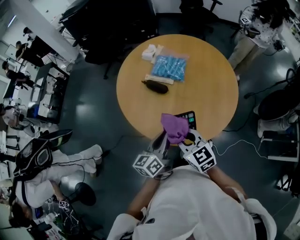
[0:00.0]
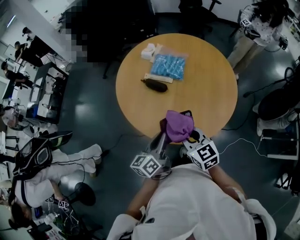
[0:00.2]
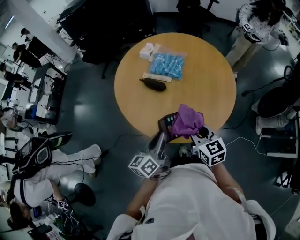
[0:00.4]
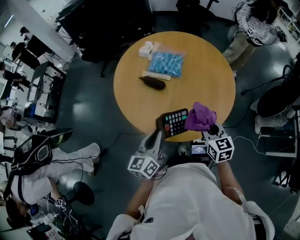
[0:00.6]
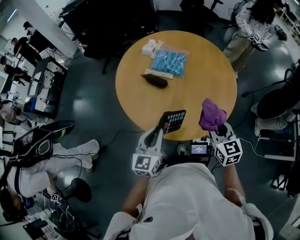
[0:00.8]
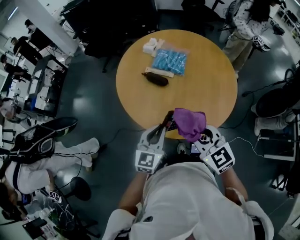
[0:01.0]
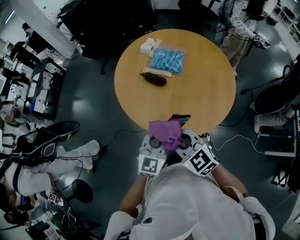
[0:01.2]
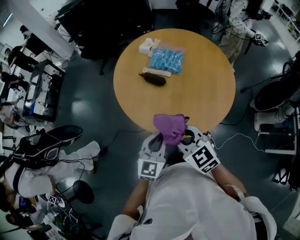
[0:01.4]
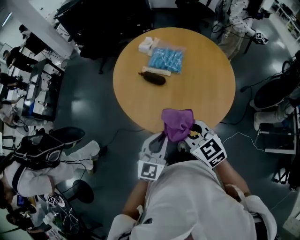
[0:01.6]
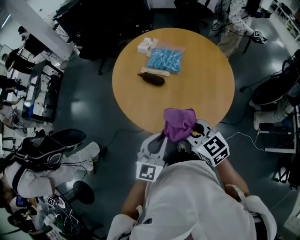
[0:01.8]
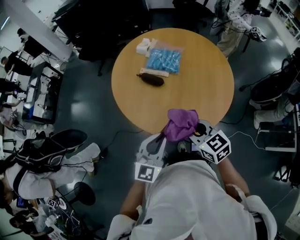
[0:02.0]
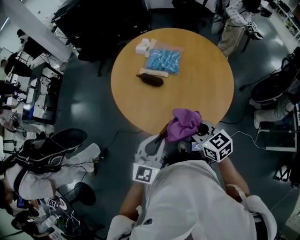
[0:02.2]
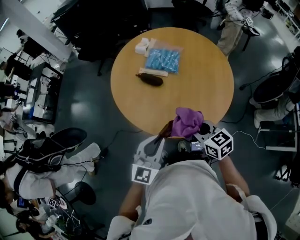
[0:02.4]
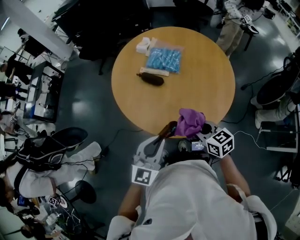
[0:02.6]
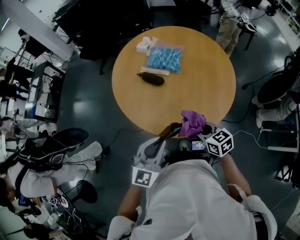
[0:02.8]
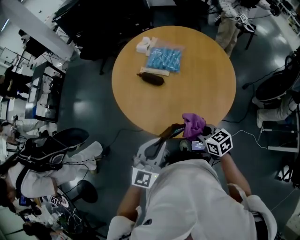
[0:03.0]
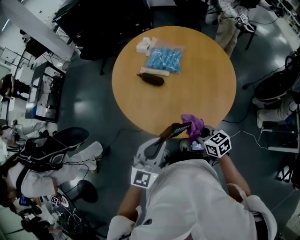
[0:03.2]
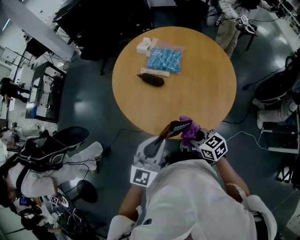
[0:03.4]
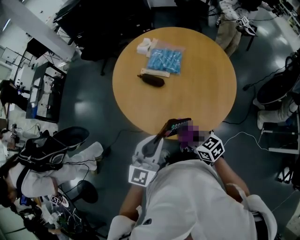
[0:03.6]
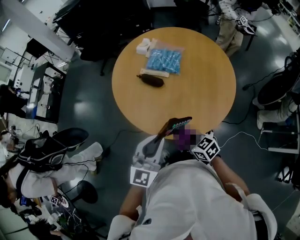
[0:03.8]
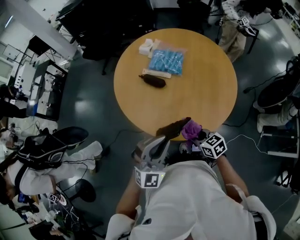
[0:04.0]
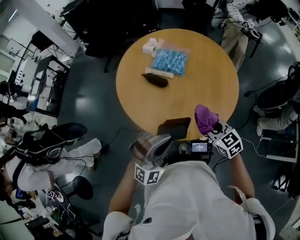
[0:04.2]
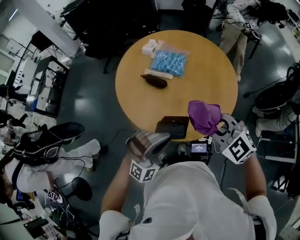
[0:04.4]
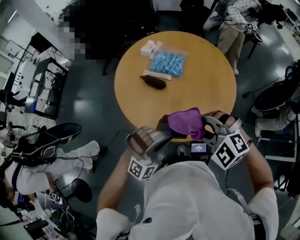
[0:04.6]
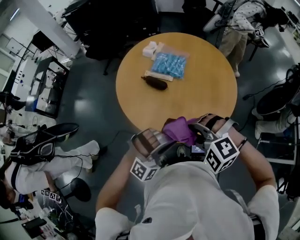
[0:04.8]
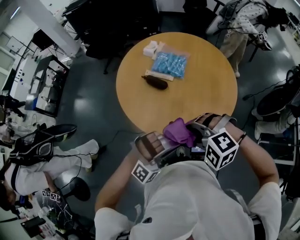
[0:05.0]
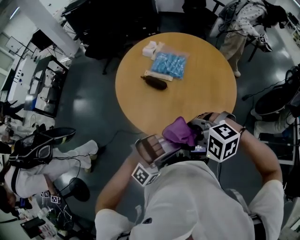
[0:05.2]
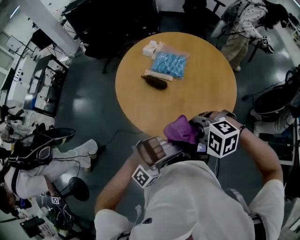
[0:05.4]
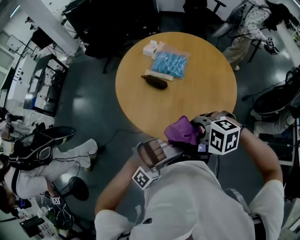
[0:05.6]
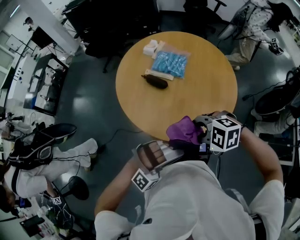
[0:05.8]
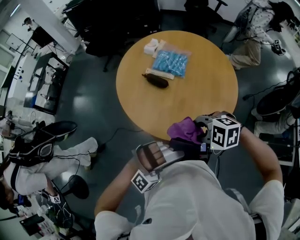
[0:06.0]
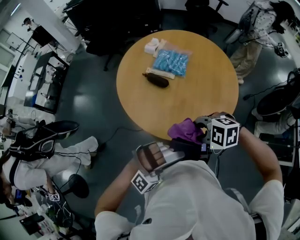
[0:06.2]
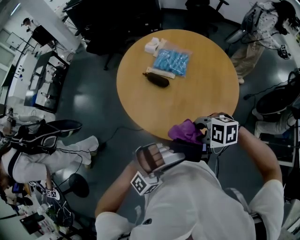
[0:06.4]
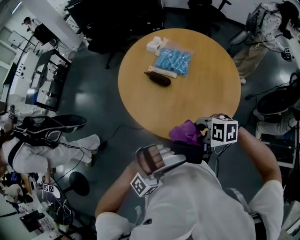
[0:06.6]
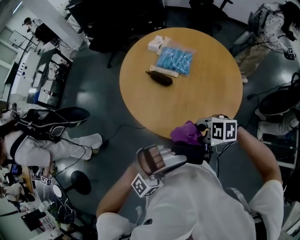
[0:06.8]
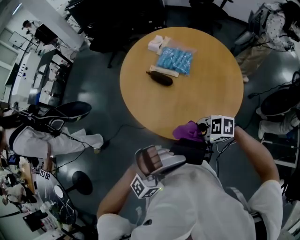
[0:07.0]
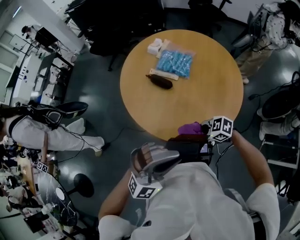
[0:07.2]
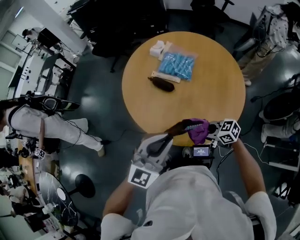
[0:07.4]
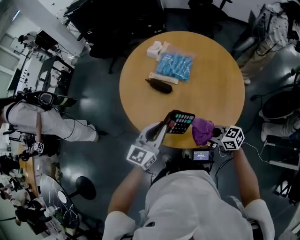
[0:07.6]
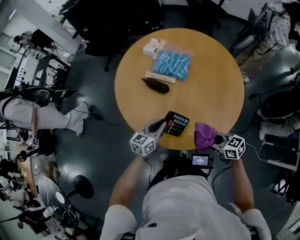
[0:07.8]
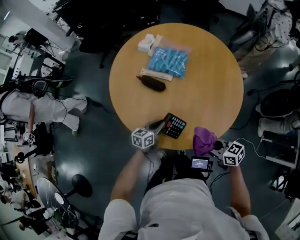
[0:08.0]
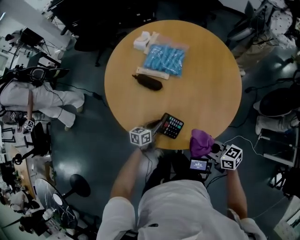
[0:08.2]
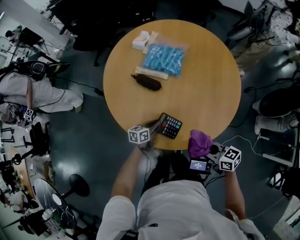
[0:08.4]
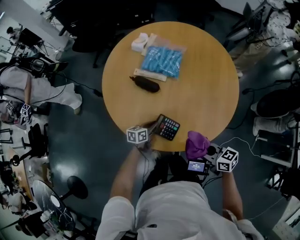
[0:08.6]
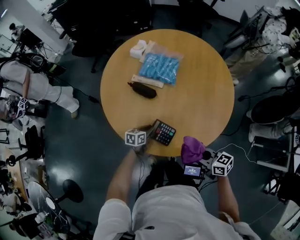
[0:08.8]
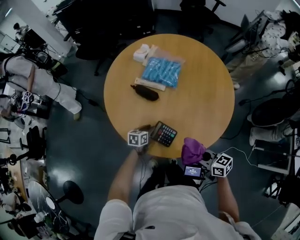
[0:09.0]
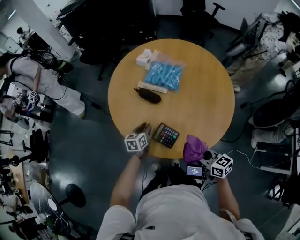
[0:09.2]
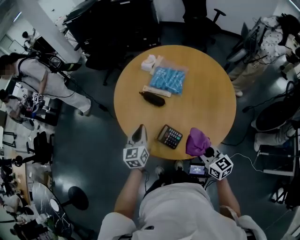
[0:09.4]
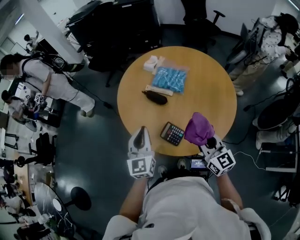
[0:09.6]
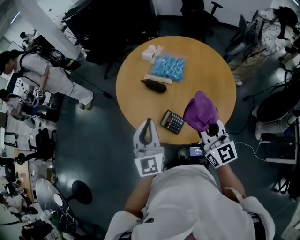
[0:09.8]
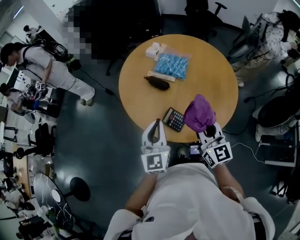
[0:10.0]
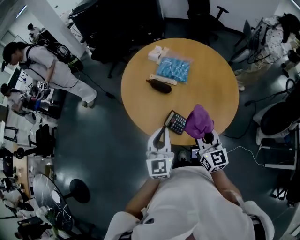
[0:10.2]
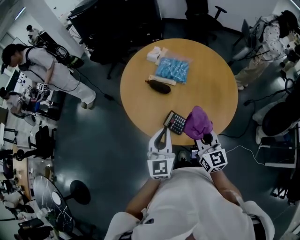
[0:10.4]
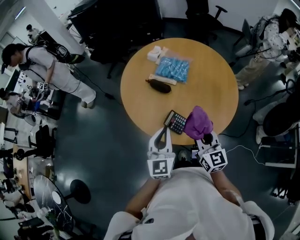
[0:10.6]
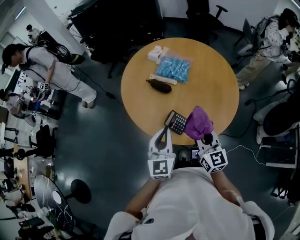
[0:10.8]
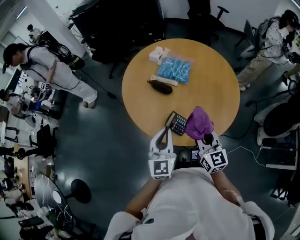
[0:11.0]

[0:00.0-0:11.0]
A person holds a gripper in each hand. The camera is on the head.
0:00.0 to 0:01.6: The left gripper shifts some 5 cm backward, and rotates around the line of its fingers by some 50 degrees, clockwise from behind, while the right gripper swings left and right, approximately 20 cm each way, with 2 reversals.
0:01.6 to 0:03.2: The right gripper shifts approximately 15 cm downward and to the right, and rotates approximately 20 degrees.
0:03.2 to 0:04.8: The right gripper travels upward and to the left by about 15 cm, and rotates around the line of its fingers by roughly 80 degrees, counterclockwise from behind, while the left gripper travels to the right by some 5 cm, and rotates around the line of its fingers by about 60 degrees, clockwise from behind.
0:04.8 to 0:06.2: The right gripper travels downward by some 5 cm, and changes its angle by some 30 degrees. Meanwhile the left gripper changes place by about 5 cm.
0:06.2 to 0:07.8: The right gripper goes some 15 cm downward, and rolls clockwise, seen from behind, by approximately 50 degrees, while the left gripper moves some 30 cm, and twists approximately 100 degrees counterclockwise, seen from behind.
0:07.8 to 0:09.4: The right gripper travels upward by roughly 5 cm, and turns by approximately 30 degrees, while the left gripper goes roughly 10 cm to the left, travels downward and back again, roughly 20 cm each way, and rotates approximately 30 degrees.
0:09.4 to 0:11.0: The left gripper travels backward, upward and to the right by about 15 cm. Meanwhile the right gripper moves upward and to the left, some 10 cm, and rotates approximately 20 degrees.

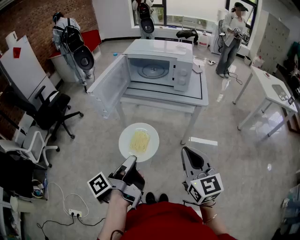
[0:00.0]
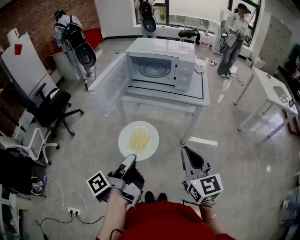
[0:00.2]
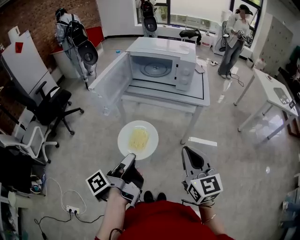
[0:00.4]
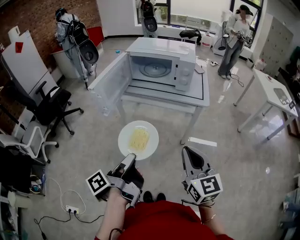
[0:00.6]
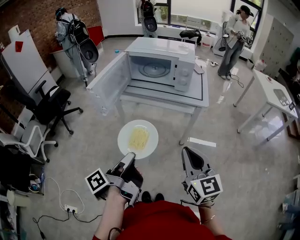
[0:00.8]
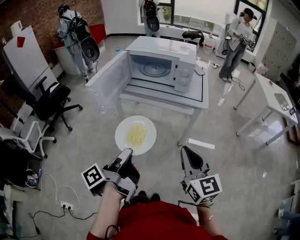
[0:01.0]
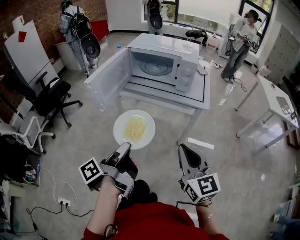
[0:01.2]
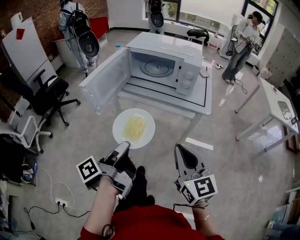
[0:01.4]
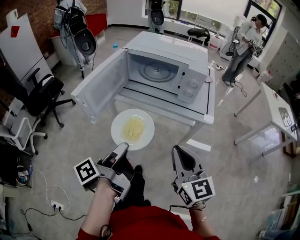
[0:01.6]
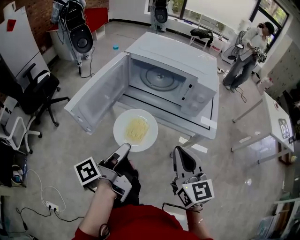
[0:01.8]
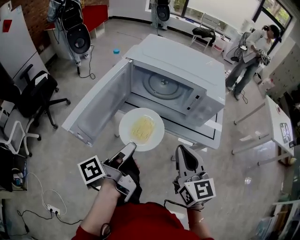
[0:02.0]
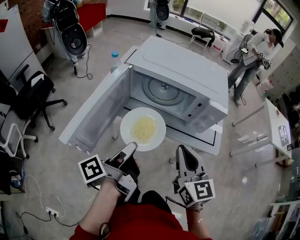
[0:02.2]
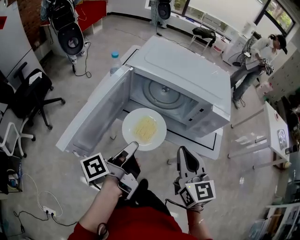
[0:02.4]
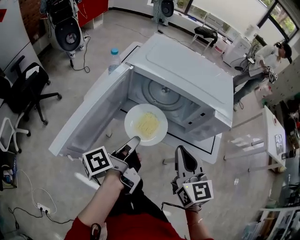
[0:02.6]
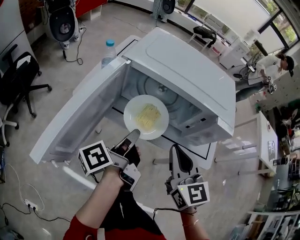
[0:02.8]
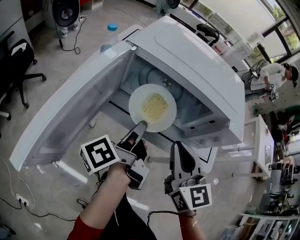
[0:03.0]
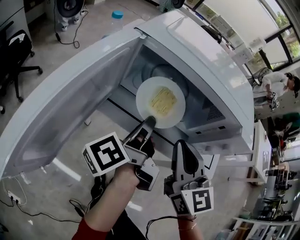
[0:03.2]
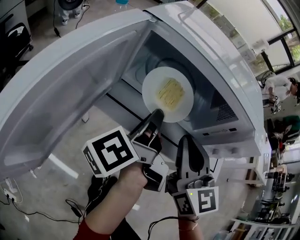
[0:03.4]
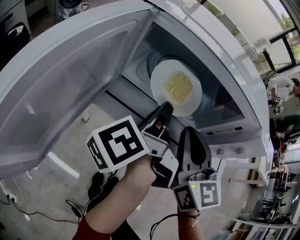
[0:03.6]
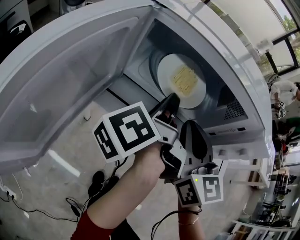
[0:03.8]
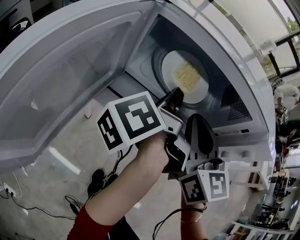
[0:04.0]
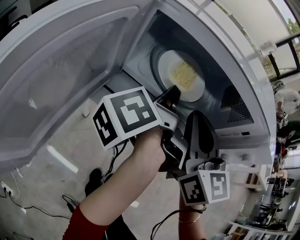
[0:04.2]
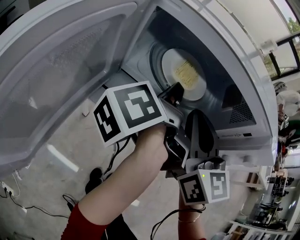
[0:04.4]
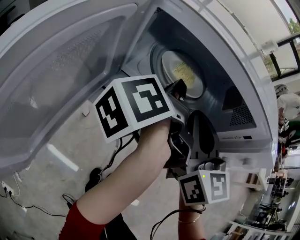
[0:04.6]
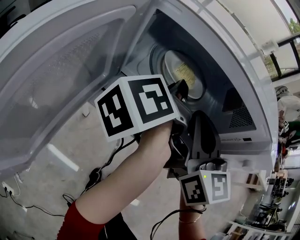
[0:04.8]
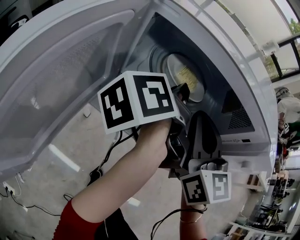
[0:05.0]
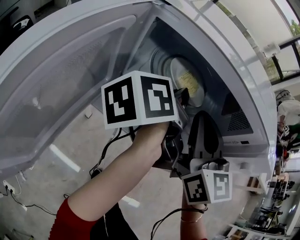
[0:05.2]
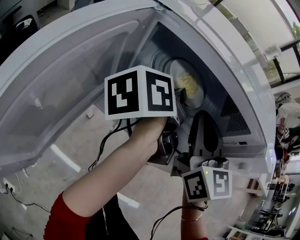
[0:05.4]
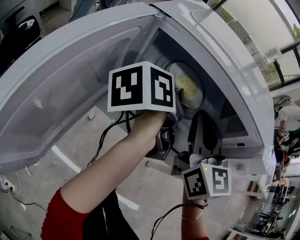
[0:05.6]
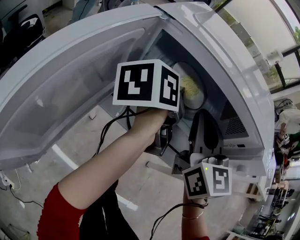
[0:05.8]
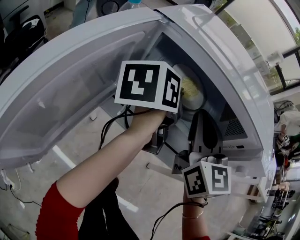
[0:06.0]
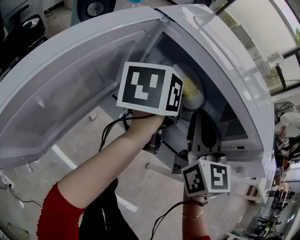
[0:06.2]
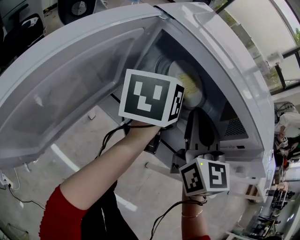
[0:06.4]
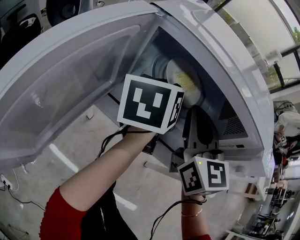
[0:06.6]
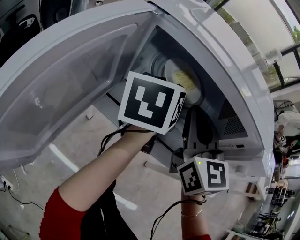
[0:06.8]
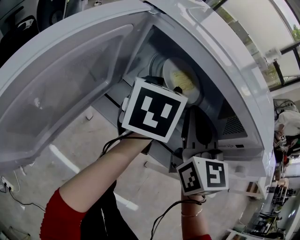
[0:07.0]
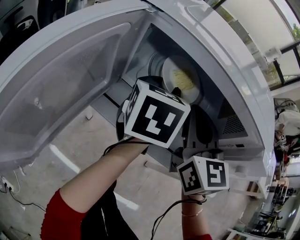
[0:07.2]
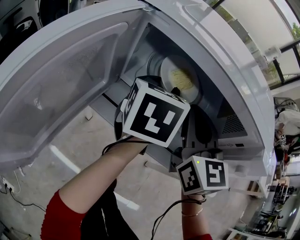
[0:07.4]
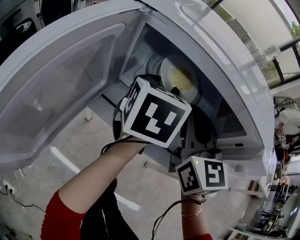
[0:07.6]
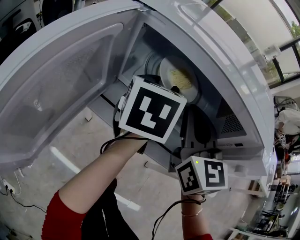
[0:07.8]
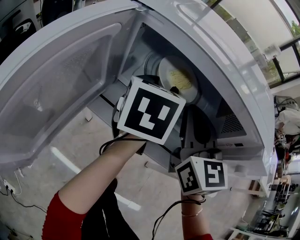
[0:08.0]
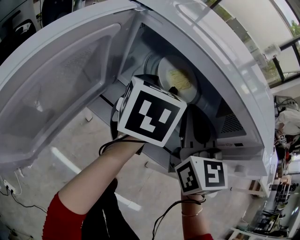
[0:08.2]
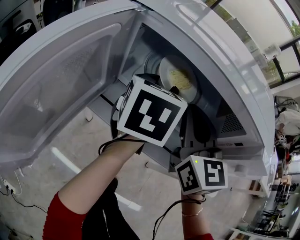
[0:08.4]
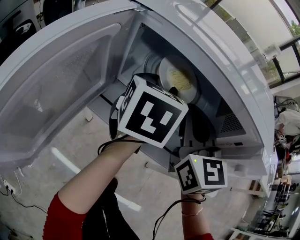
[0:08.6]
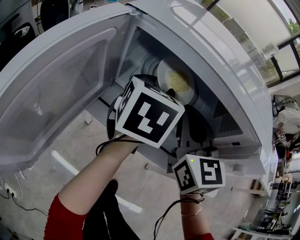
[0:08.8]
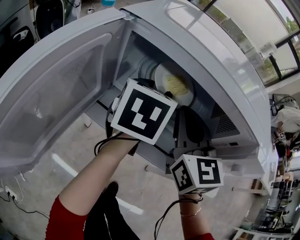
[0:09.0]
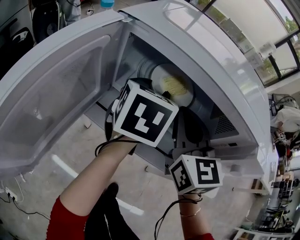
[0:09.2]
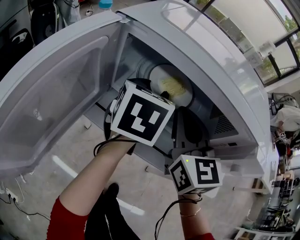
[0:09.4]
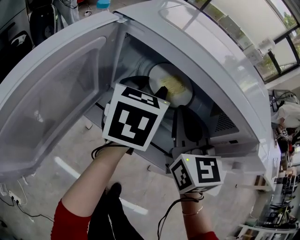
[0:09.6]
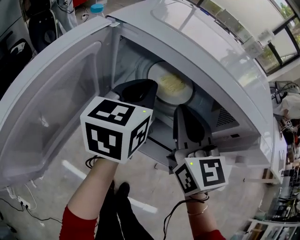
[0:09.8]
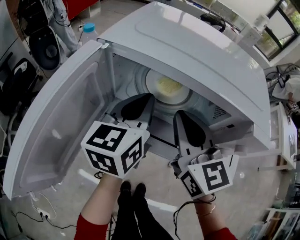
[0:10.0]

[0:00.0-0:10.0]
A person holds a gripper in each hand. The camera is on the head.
0:00.0 to 0:01.4: Both grippers move forward, roughly 5 cm.
0:01.4 to 0:02.8: The two grippers go about 30 cm forward.
0:02.8 to 0:04.2: Both grippers travel together forward, about 15 cm.
0:04.2 to 0:05.8: The left gripper changes its angle by approximately 40 degrees.
0:05.8 to 0:07.2: The left gripper changes its angle by approximately 40 degrees, and opens its fingers.
0:07.2 to 0:08.6: The grippers make only small movements.
0:08.6 to 0:10.0: The right gripper ends up roughly 5 cm from where it was. Meanwhile the left gripper is displaced backward by about 5 cm, turns by approximately 20 degrees, and closes its fingers.

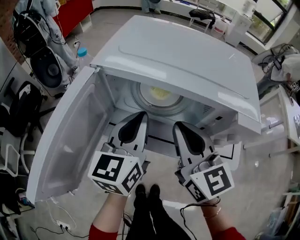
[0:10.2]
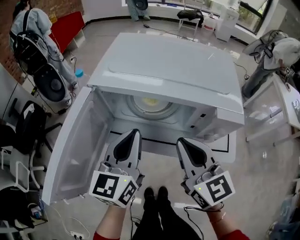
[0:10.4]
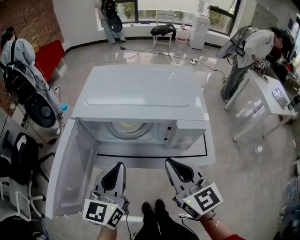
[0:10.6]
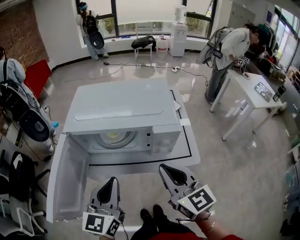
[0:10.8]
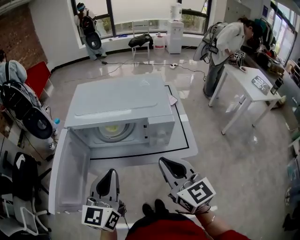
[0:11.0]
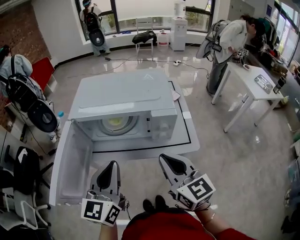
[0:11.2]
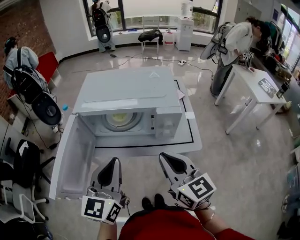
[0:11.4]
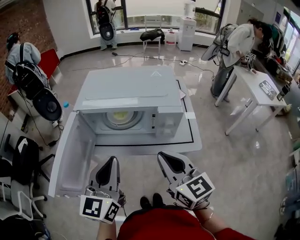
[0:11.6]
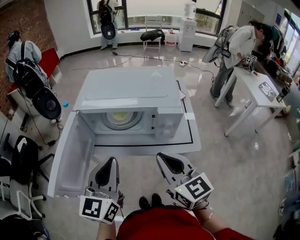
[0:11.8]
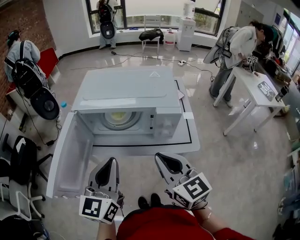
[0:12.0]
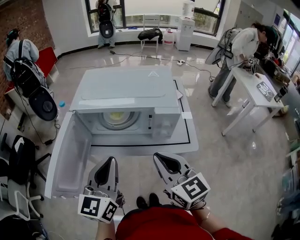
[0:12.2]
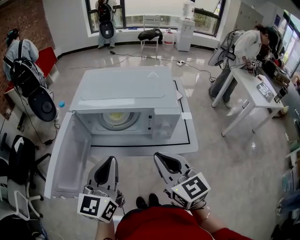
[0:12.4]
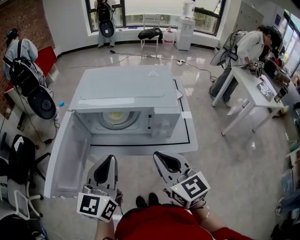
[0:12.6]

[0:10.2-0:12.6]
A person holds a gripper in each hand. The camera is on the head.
0:10.2 to 0:11.4: The right gripper is displaced backward and to the right by approximately 15 cm; the left gripper heads backward and upward, covering approximately 15 cm.
0:11.4 to 0:12.6: The grippers make only small movements.
